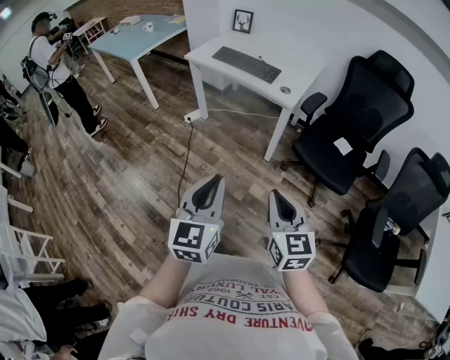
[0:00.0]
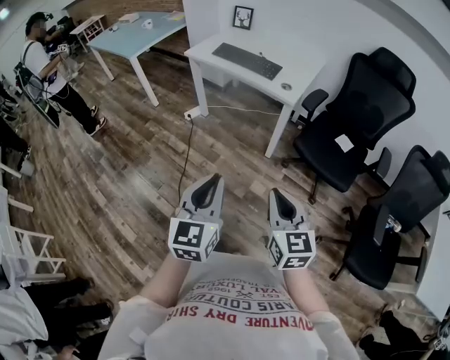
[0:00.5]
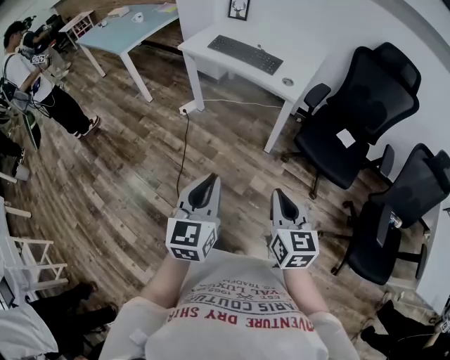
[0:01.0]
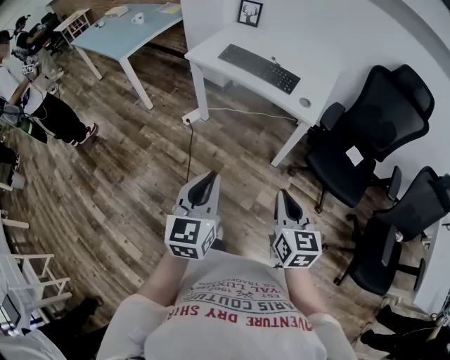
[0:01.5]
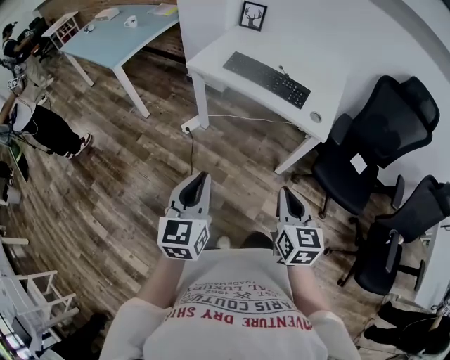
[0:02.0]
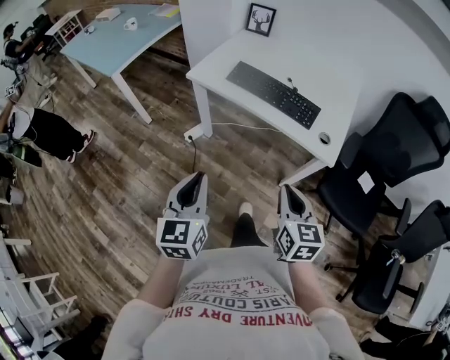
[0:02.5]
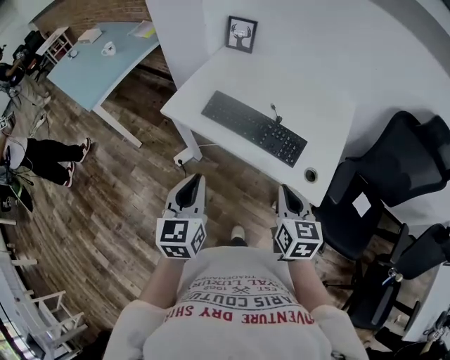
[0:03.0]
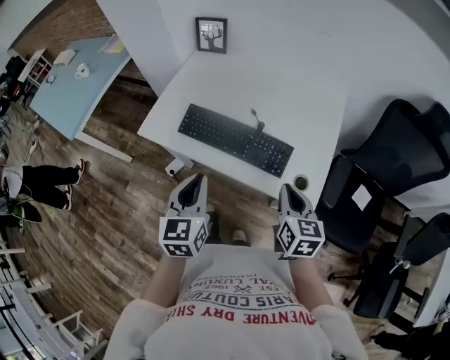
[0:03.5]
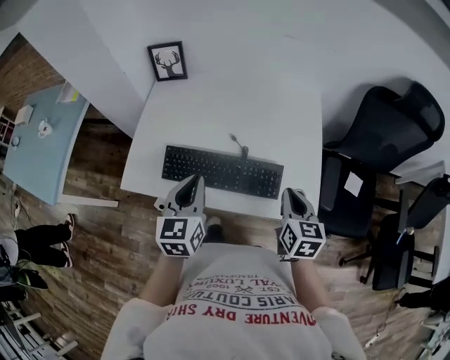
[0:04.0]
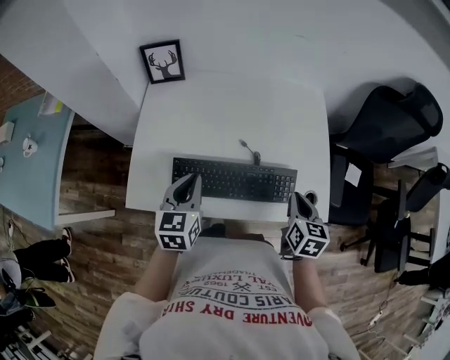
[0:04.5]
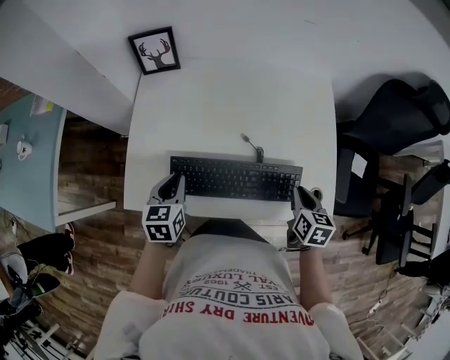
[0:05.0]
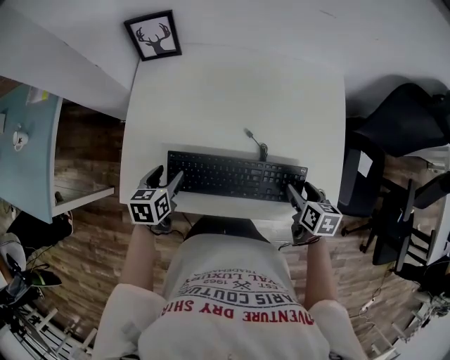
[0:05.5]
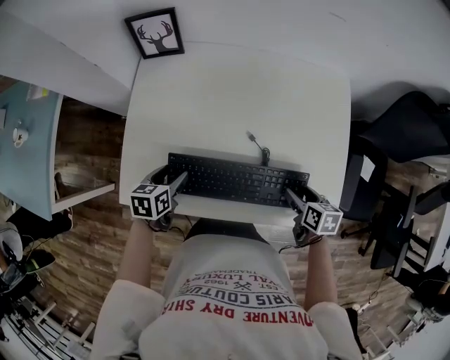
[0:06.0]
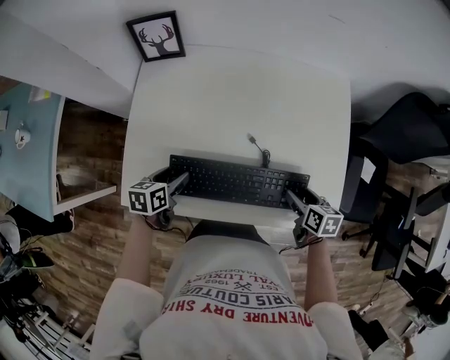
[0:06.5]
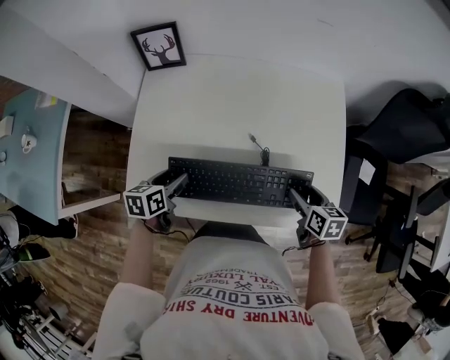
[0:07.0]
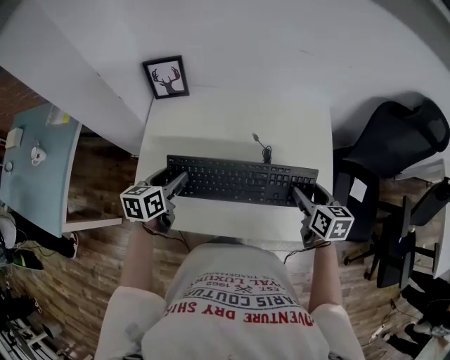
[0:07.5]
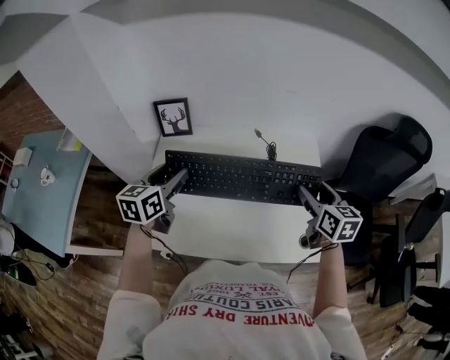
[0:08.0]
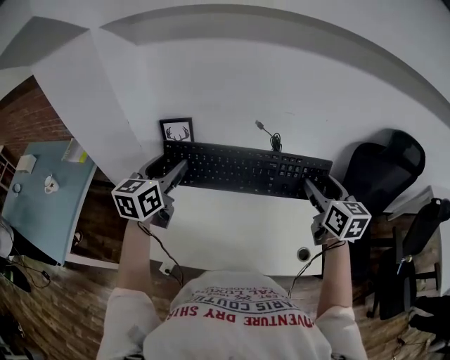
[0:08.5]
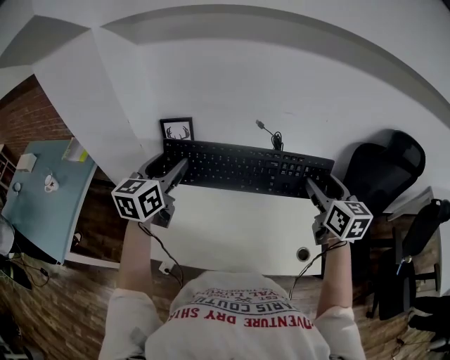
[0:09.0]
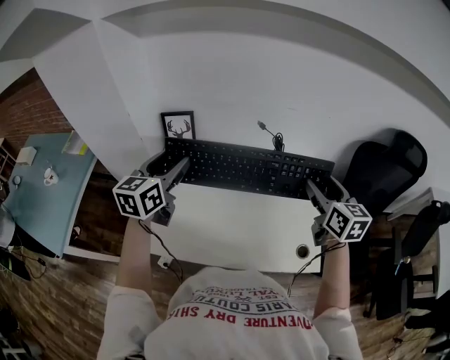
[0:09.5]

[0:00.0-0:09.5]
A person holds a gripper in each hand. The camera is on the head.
0:00.0 to 0:02.0: The two grippers go approximately 35 cm forward and to the left.
0:02.0 to 0:04.0: The two grippers travel together, forward, about 50 cm. The right gripper changes its angle by some 30 degrees; the left gripper swivels approximately 20 degrees.
0:04.0 to 0:05.5: The left gripper goes some 25 cm downward, to the left and forward, rotates roughly 30 degrees, and opens. Meanwhile the right gripper shifts some 15 cm downward and forward, changes its angle by about 30 degrees, and opens.
0:05.5 to 0:07.5: The left gripper heads forward, covering approximately 5 cm, and changes its angle by about 30 degrees. Meanwhile the right gripper swivels roughly 30 degrees.
0:07.5 to 0:09.5: The right gripper travels backward by roughly 10 cm, and angles its fingers upward, by some 40 degrees. Meanwhile the left gripper heads backward and upward, covering some 15 cm, and angles its fingers upward, by approximately 40 degrees.

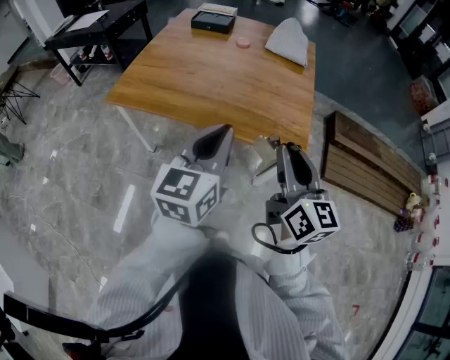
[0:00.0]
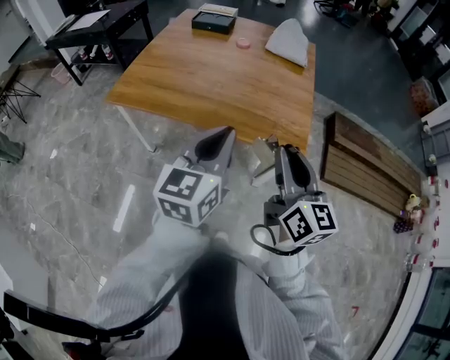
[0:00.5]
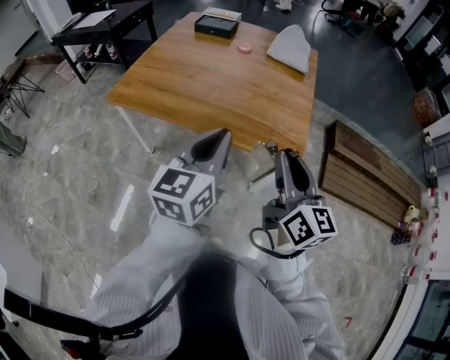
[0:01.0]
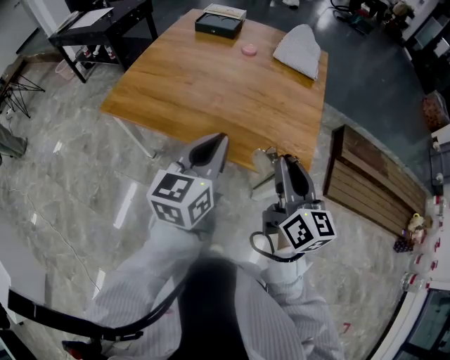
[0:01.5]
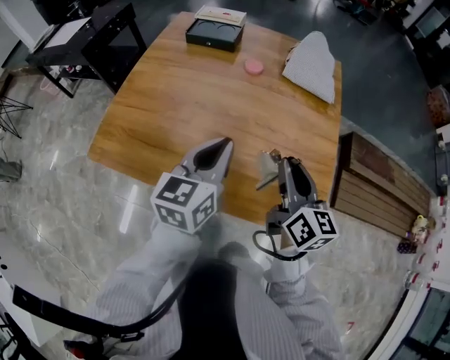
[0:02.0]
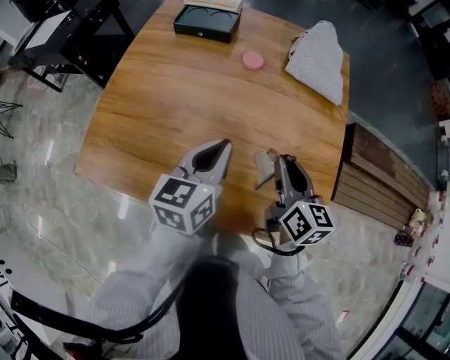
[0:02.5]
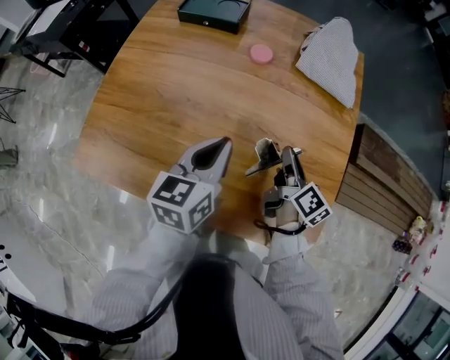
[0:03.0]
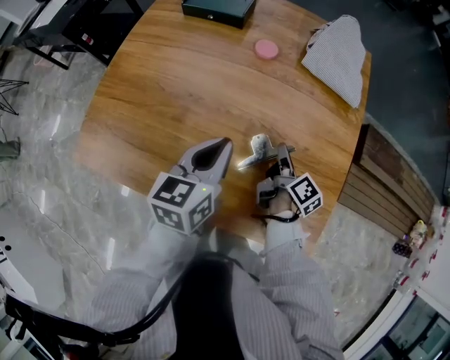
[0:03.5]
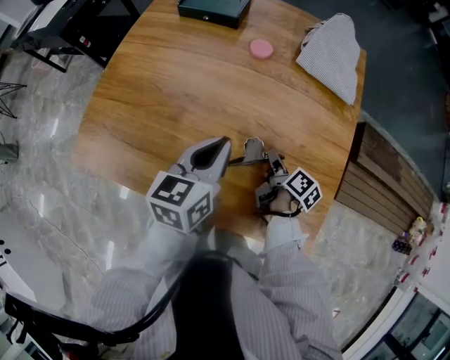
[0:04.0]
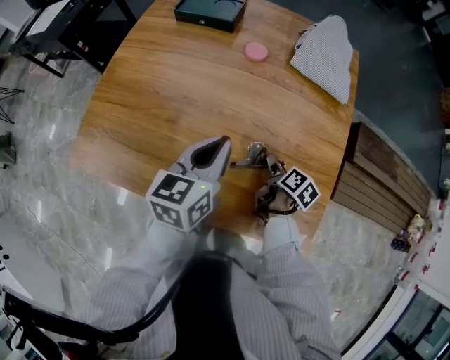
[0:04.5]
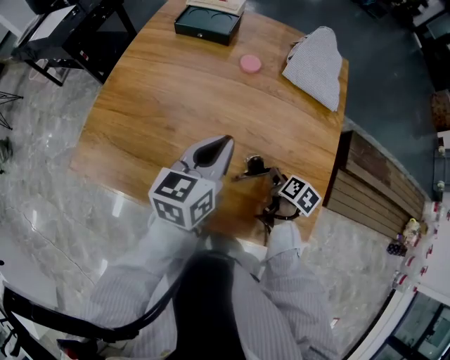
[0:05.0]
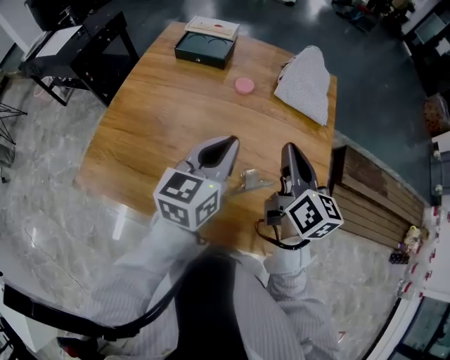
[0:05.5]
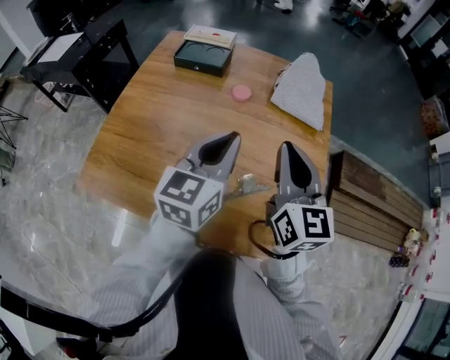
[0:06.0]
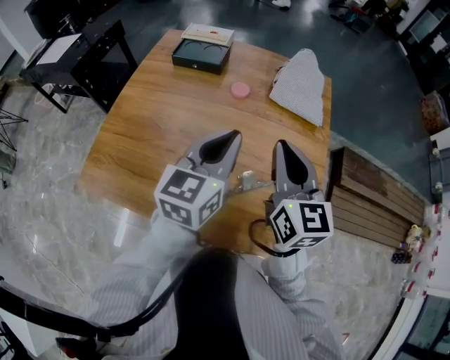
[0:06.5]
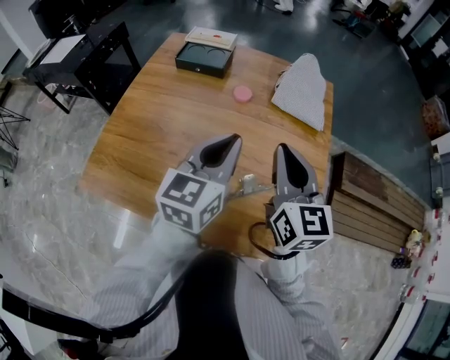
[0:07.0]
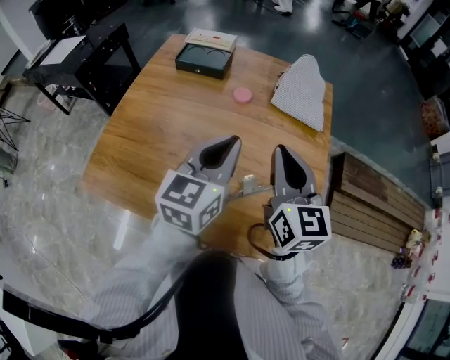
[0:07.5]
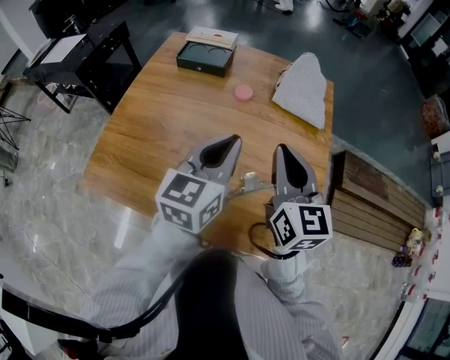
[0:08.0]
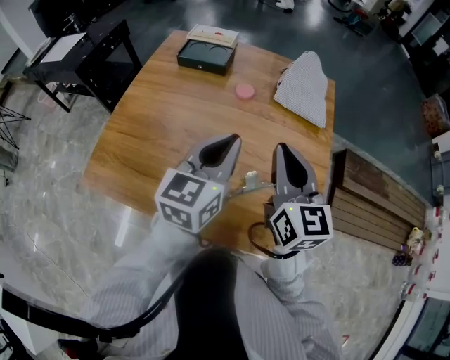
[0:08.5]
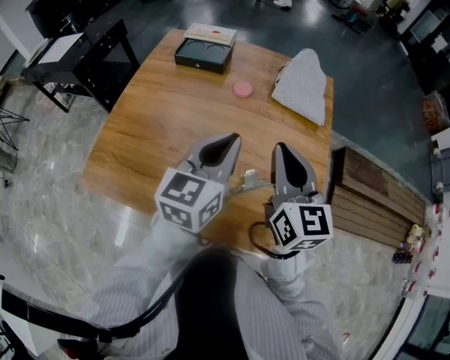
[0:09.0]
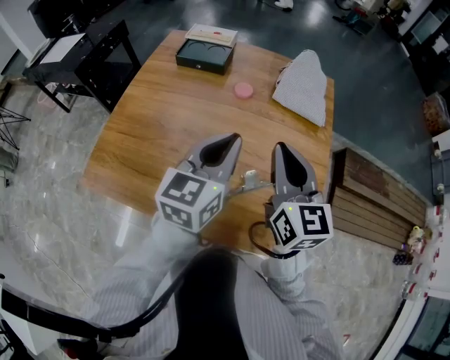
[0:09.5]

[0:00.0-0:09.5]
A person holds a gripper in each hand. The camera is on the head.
0:00.0 to 0:02.0: Both grippers travel together forward, roughly 30 cm.
0:02.0 to 0:04.0: The right gripper goes some 30 cm downward and forward, twists approximately 40 degrees clockwise, seen from behind, and opens its fingers. Meanwhile the left gripper goes roughly 15 cm forward and downward.
0:04.0 to 0:05.5: The left gripper travels upward by about 10 cm. Meanwhile the right gripper is displaced upward by about 30 cm, turns by some 50 degrees, and closes its fingers.
0:05.5 to 0:07.5: The right gripper shifts by approximately 5 cm, and swivels roughly 20 degrees.
0:07.5 to 0:09.5: Neither gripper changes place.

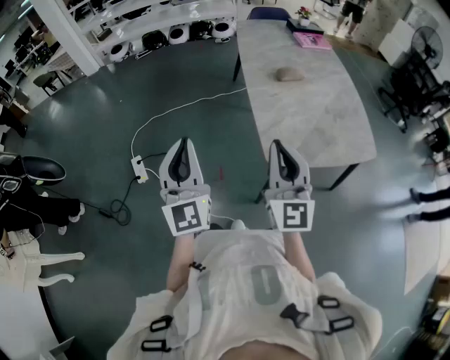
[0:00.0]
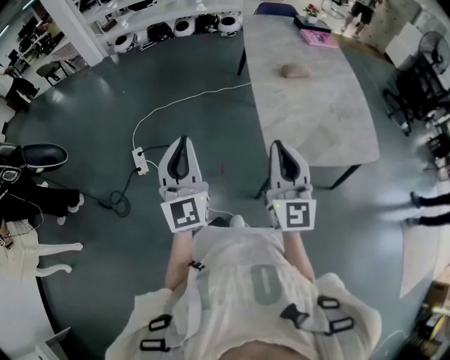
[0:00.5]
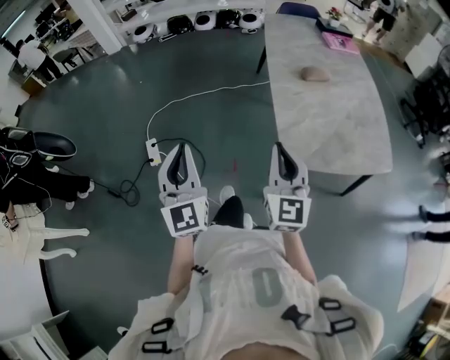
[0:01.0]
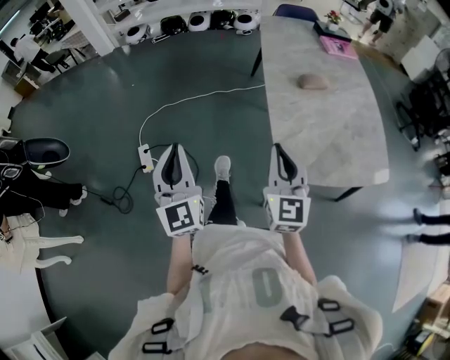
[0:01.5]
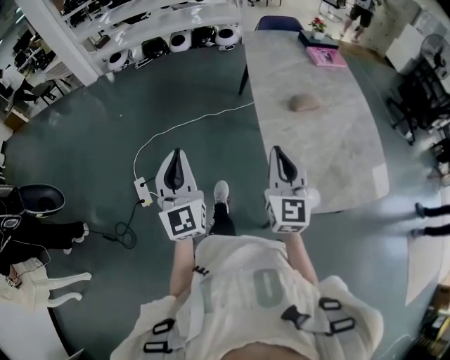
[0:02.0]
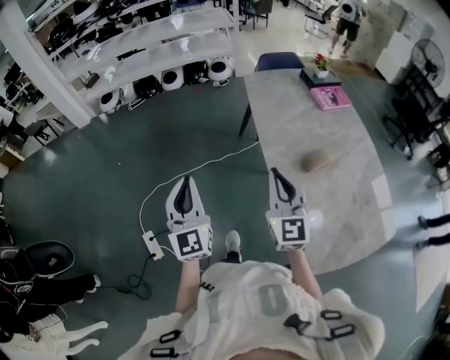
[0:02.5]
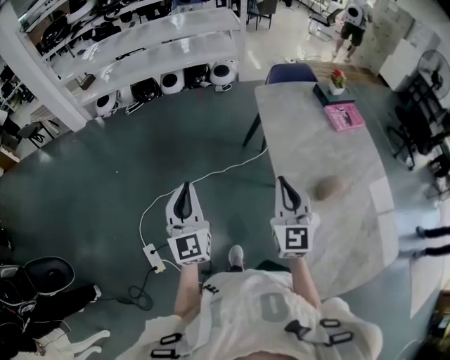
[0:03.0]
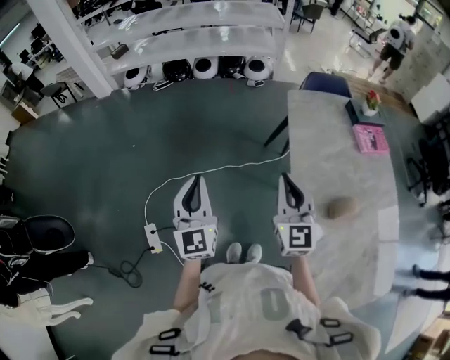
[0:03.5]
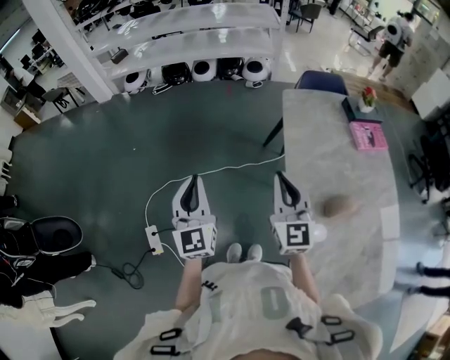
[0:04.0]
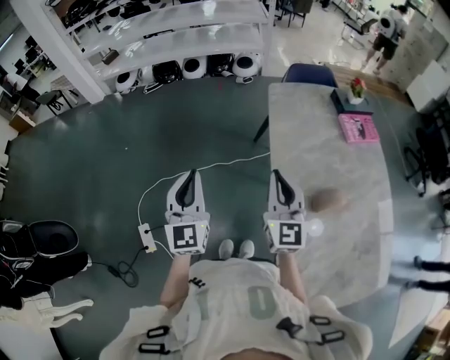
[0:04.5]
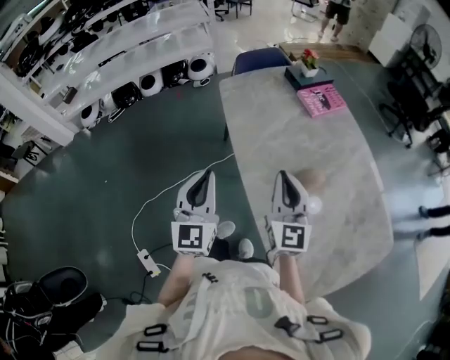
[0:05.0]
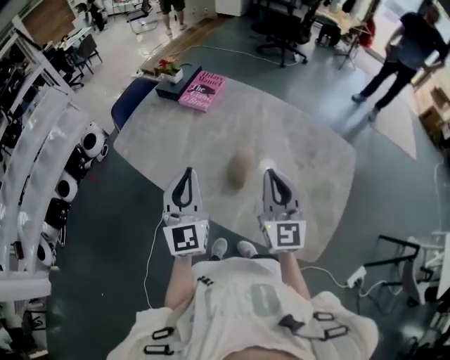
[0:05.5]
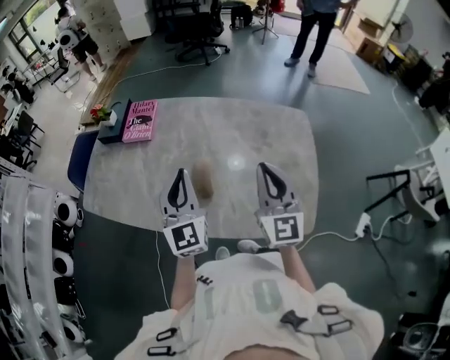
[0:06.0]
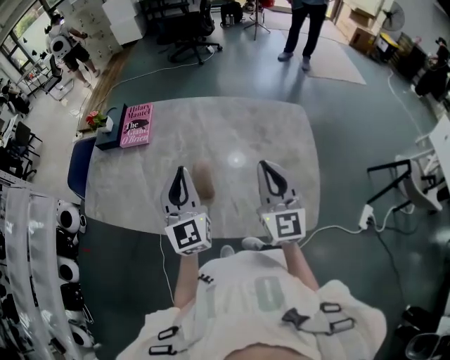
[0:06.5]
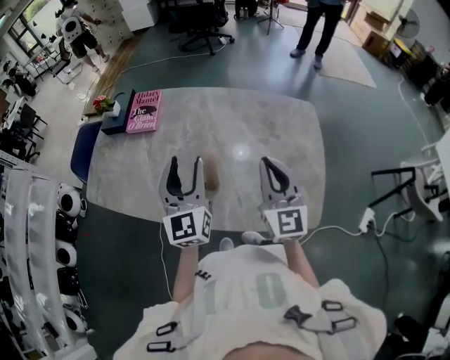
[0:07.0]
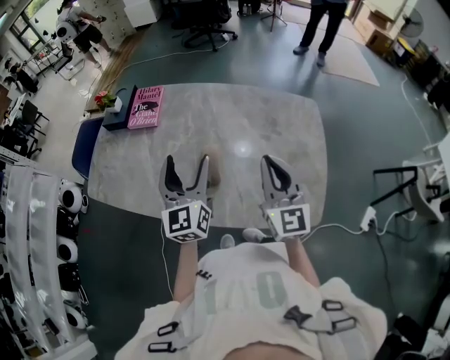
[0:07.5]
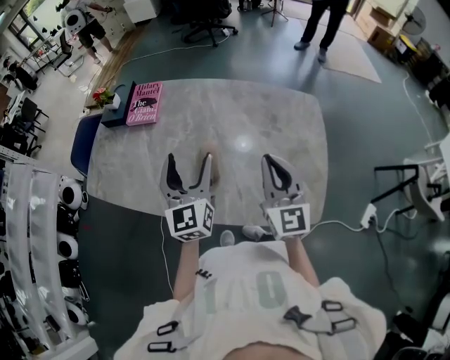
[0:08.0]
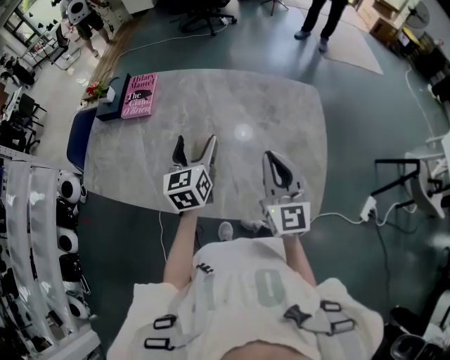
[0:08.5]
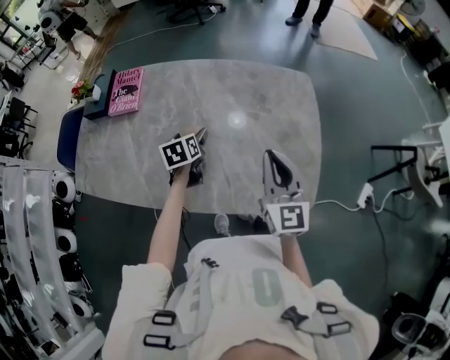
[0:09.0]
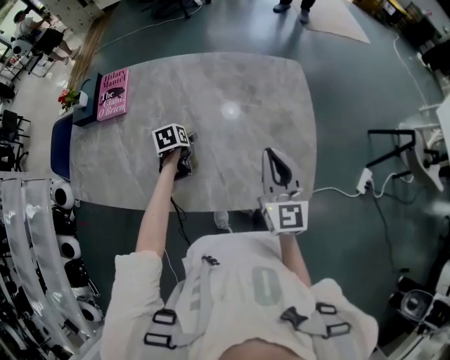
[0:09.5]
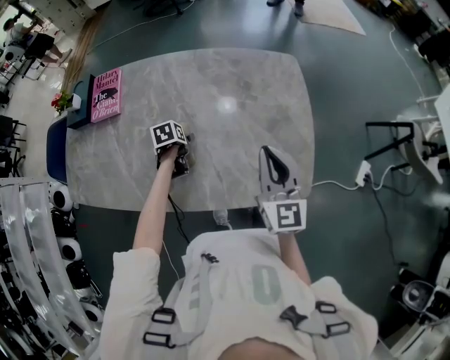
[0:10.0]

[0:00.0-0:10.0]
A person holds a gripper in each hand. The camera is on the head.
0:00.0 to 0:02.0: Both grippers move forward, roughly 20 cm.
0:02.0 to 0:04.0: Both grippers move forward, approximately 40 cm.
0:04.0 to 0:06.0: The right gripper shifts by roughly 40 cm, and turns by roughly 80 degrees; the left gripper moves about 50 cm, and turns by some 80 degrees.
0:06.0 to 0:08.0: The left gripper opens.
0:08.0 to 0:10.0: The left gripper shifts approximately 30 cm downward, and tilts its fingers about 70 degrees downward; the right gripper goes some 10 cm to the right and downward.
